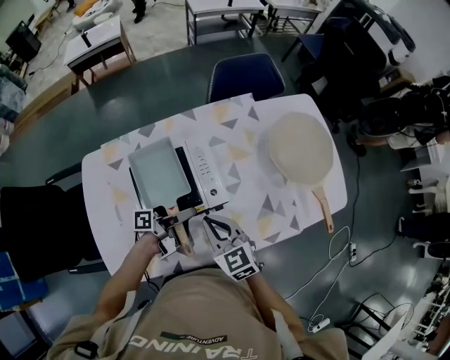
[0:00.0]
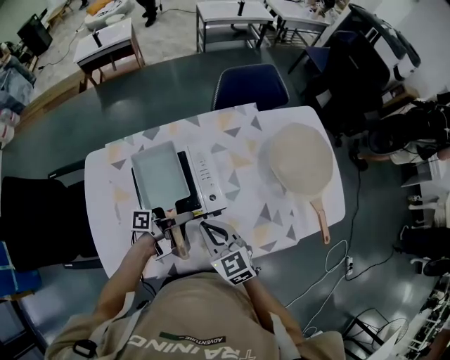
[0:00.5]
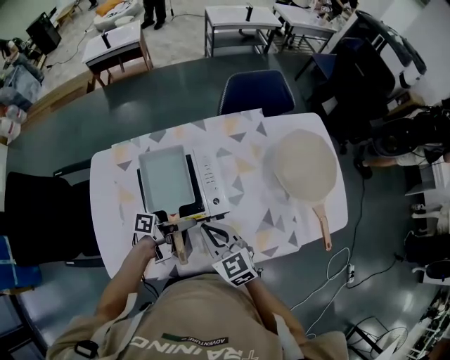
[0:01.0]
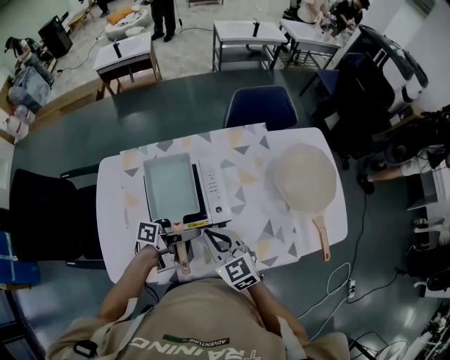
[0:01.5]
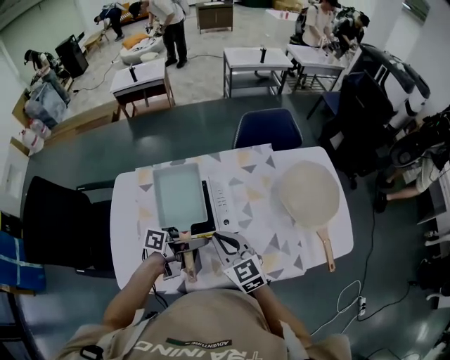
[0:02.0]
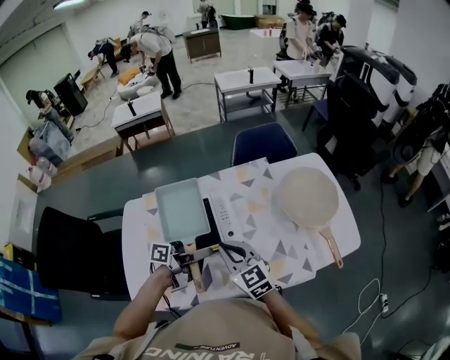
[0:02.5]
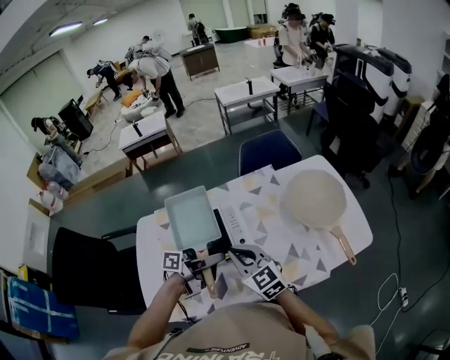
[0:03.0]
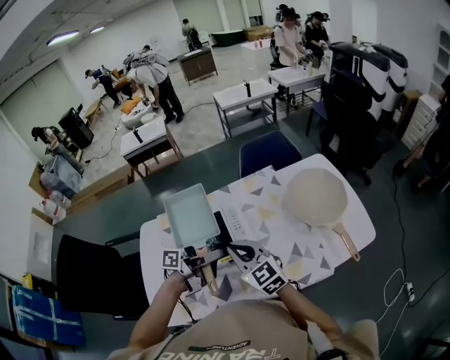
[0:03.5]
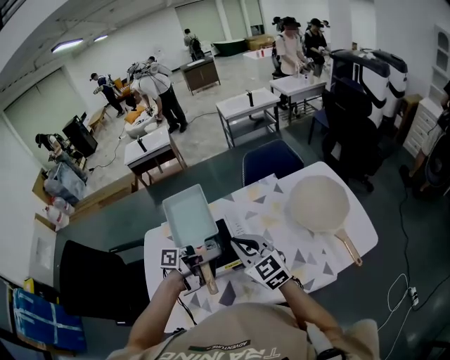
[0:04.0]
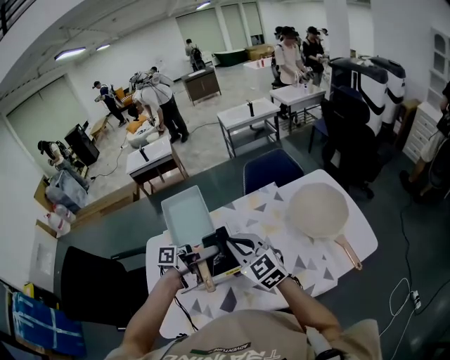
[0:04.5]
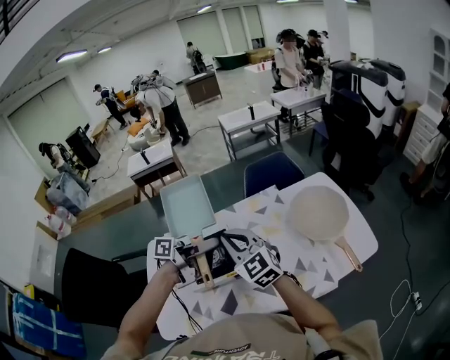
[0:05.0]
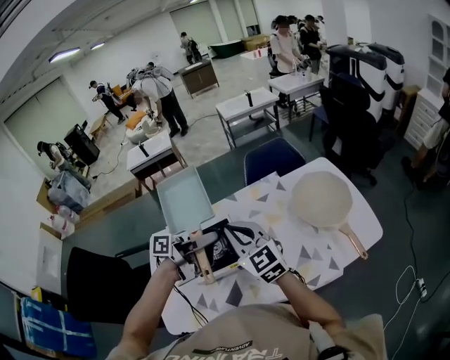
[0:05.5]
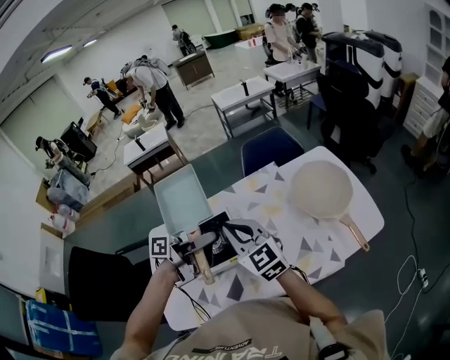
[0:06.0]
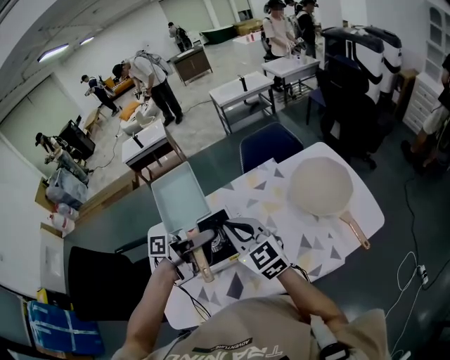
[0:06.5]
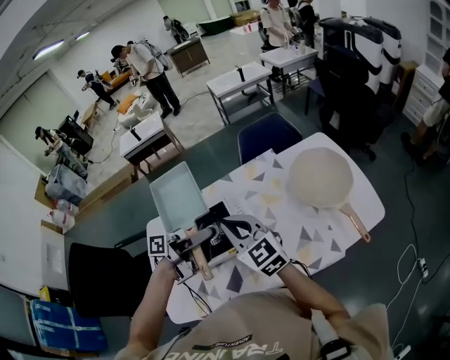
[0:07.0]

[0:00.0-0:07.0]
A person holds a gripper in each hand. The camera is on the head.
0:00.0 to 0:02.0: The two grippers go some 5 cm upward.
0:02.0 to 0:03.5: The grippers both shift upward by some 5 cm.
0:03.5 to 0:05.0: The grippers both shift upward by about 10 cm.
0:05.0 to 0:07.0: There are only small adjustments of the grippers.

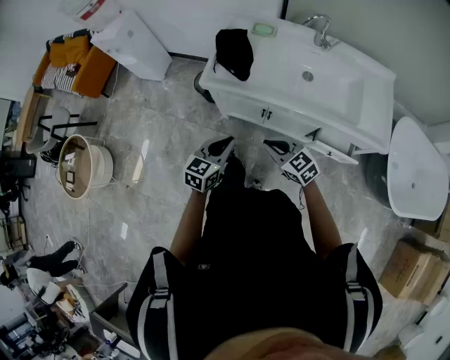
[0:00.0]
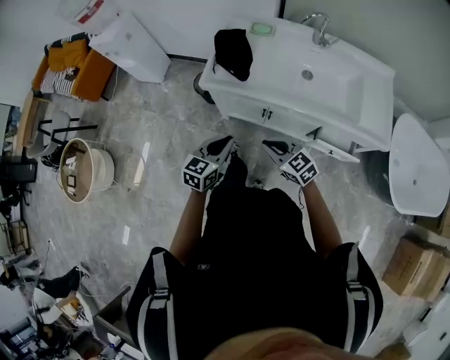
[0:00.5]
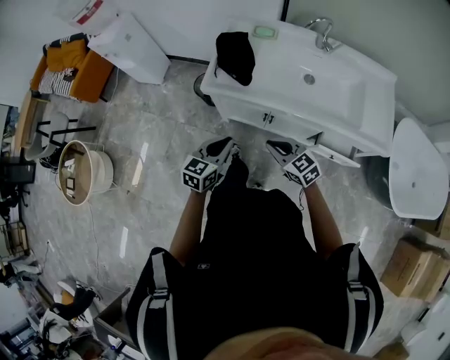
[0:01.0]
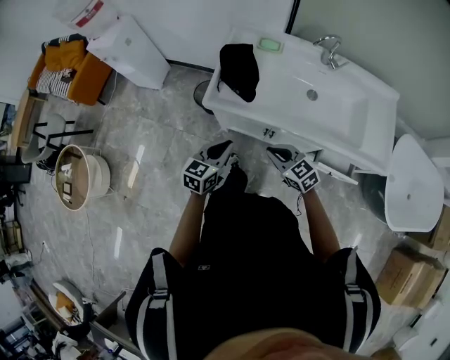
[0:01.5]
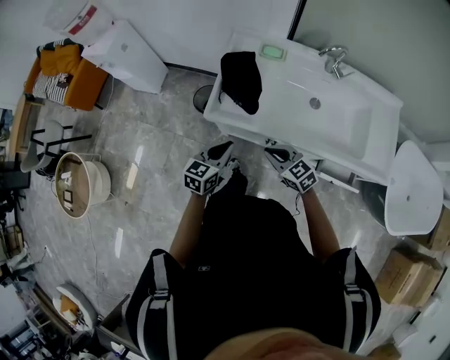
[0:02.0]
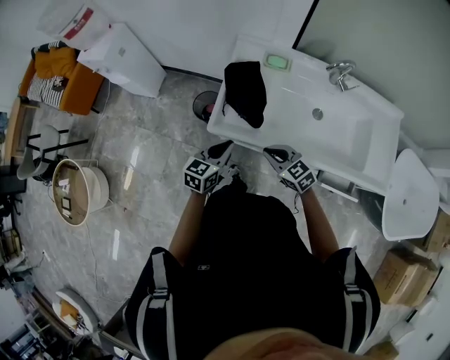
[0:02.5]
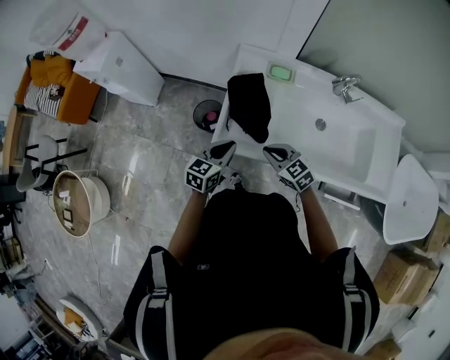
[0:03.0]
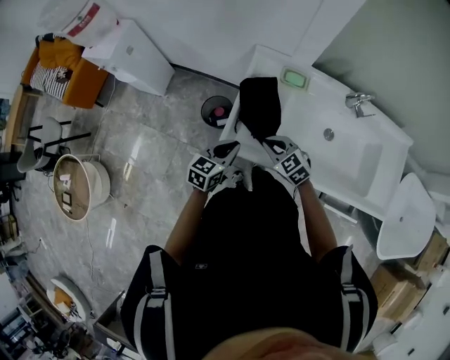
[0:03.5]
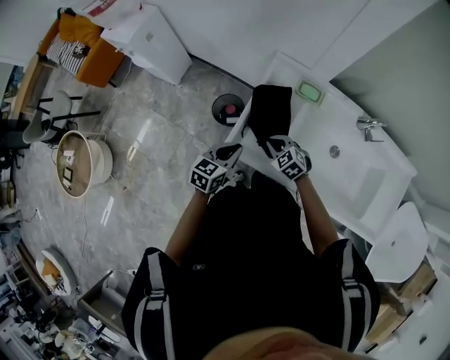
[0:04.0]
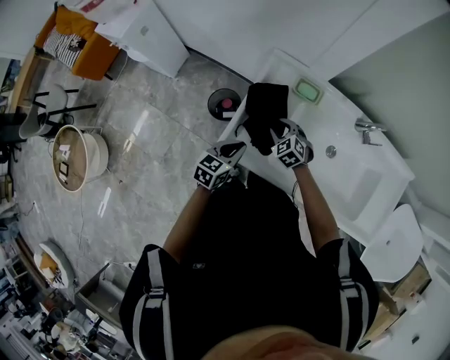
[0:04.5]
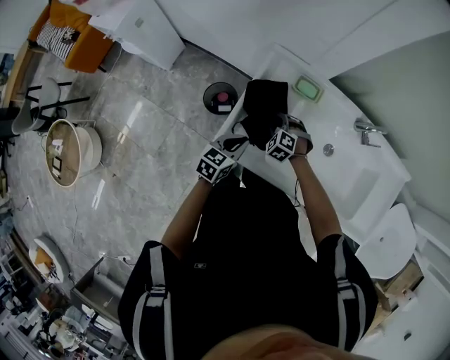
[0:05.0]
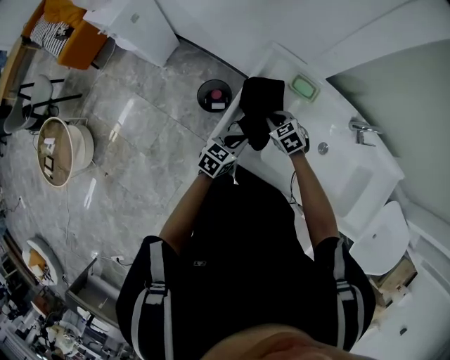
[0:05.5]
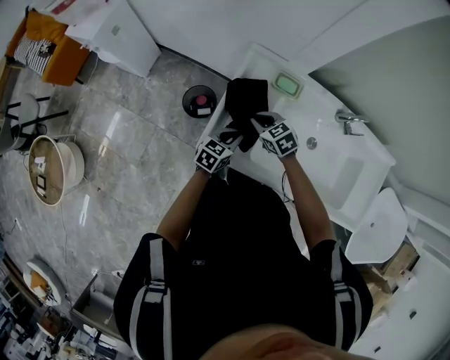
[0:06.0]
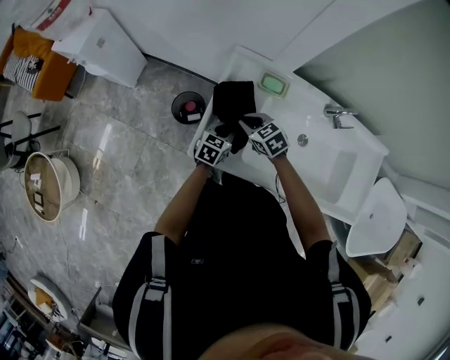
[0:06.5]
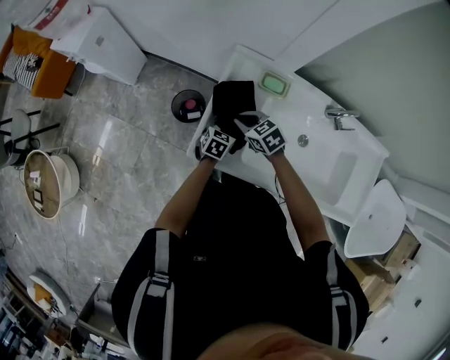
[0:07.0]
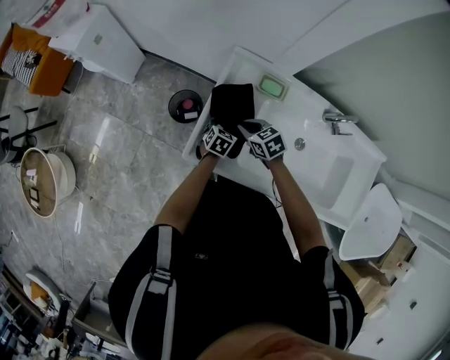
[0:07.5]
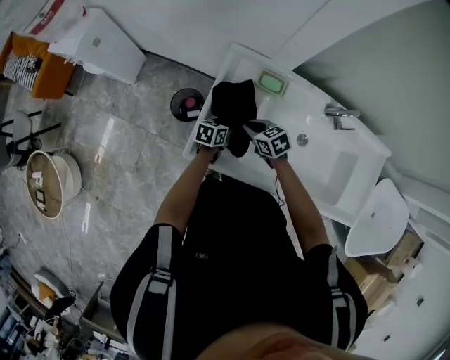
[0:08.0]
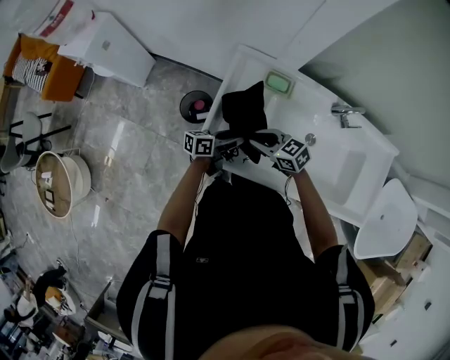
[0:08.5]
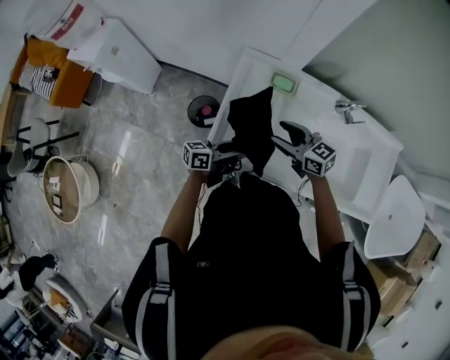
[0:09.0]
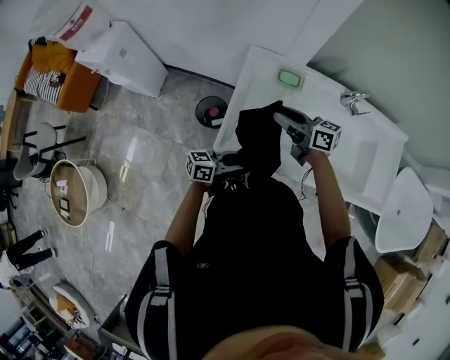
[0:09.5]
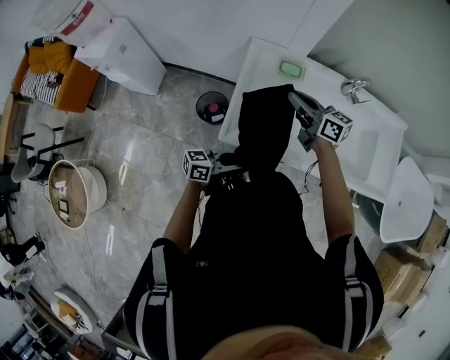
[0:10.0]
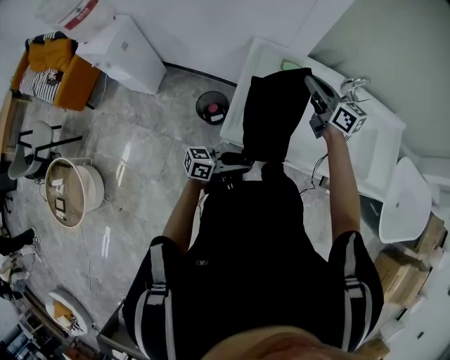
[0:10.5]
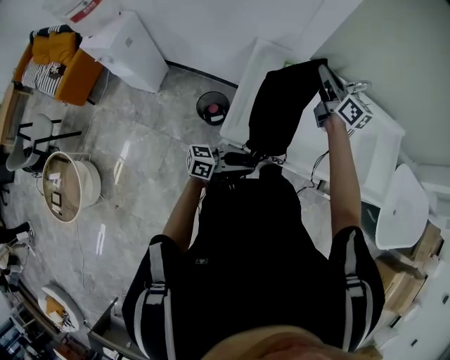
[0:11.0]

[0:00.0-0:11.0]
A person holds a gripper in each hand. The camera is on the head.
0:00.0 to 0:02.0: Both grippers move forward, approximately 15 cm.
0:02.0 to 0:03.5: The grippers both shift forward by roughly 20 cm.
0:03.5 to 0:05.5: The right gripper is displaced forward and downward by approximately 15 cm, and opens, then closes again, while the left gripper goes about 10 cm downward and forward.
0:05.5 to 0:07.5: The left gripper goes approximately 15 cm downward, forward and to the right, and opens its fingers.
0:07.5 to 0:09.0: Both grippers move upward, roughly 15 cm. The right gripper changes its angle by about 30 degrees, and opens its fingers; the left gripper tips its fingers upward by some 50 degrees.
0:09.0 to 0:11.0: The right gripper shifts roughly 15 cm upward, rotates about 40 degrees, and closes its fingers, while the left gripper shifts by about 15 cm.

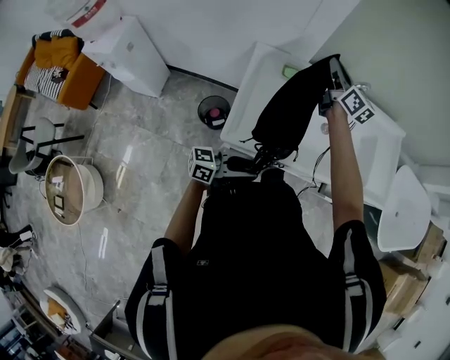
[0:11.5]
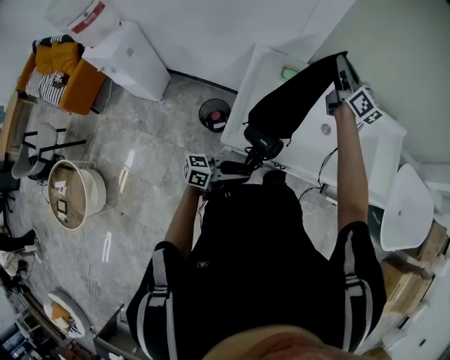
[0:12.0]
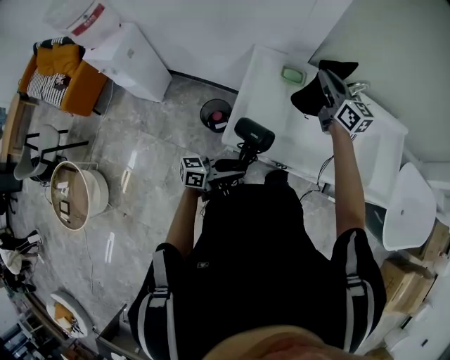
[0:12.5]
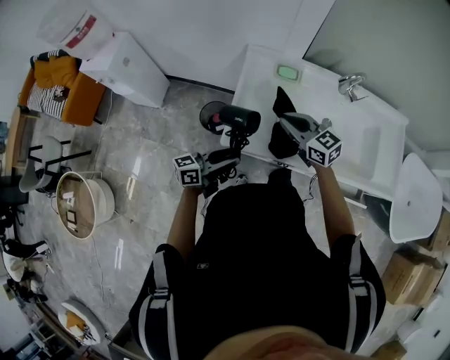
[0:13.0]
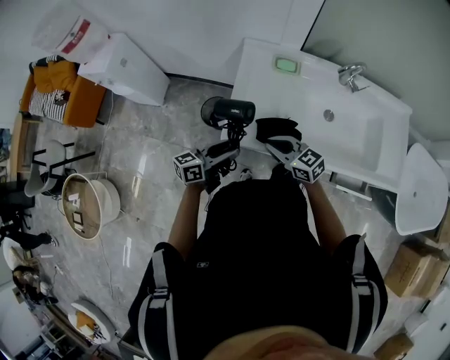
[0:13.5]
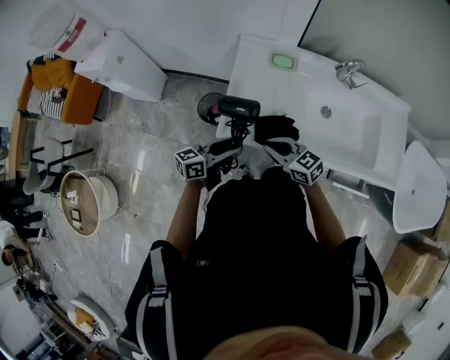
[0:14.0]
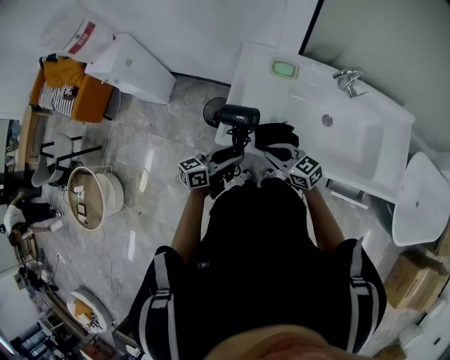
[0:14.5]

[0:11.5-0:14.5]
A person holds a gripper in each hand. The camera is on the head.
0:11.5 to 0:13.0: The left gripper ends up about 10 cm from where it was, and swivels some 20 degrees. The right gripper changes place by approximately 25 cm, and rotates about 40 degrees.
0:13.0 to 0:14.5: The left gripper moves about 5 cm; the right gripper moves backward and downward, some 10 cm.

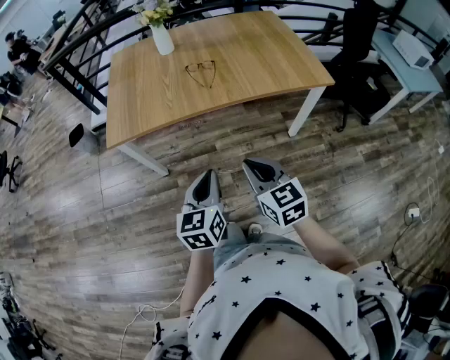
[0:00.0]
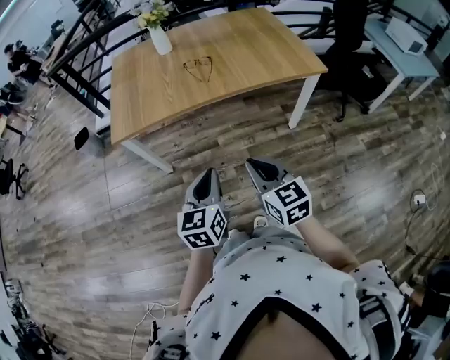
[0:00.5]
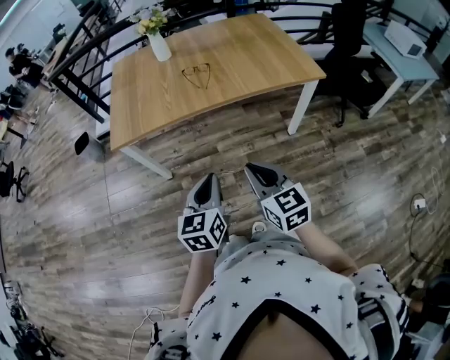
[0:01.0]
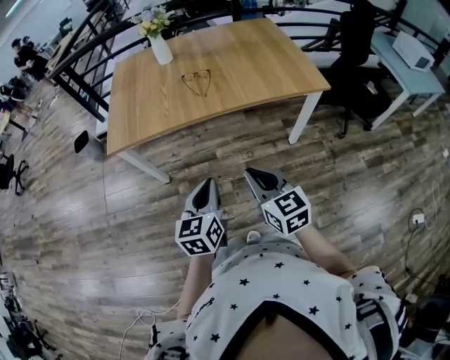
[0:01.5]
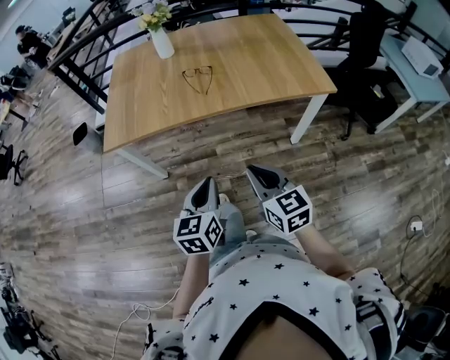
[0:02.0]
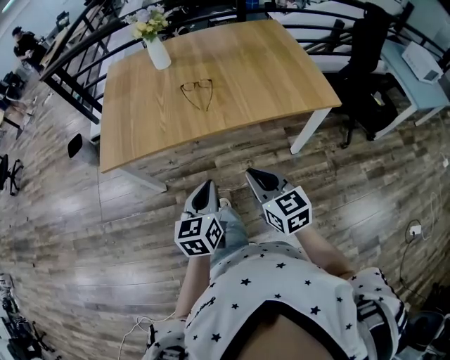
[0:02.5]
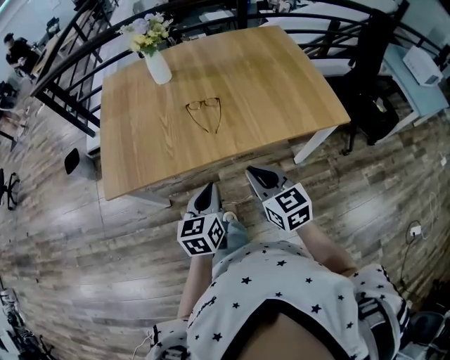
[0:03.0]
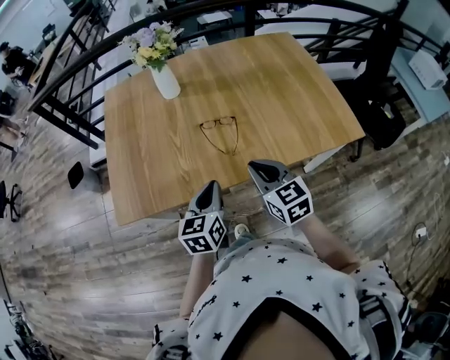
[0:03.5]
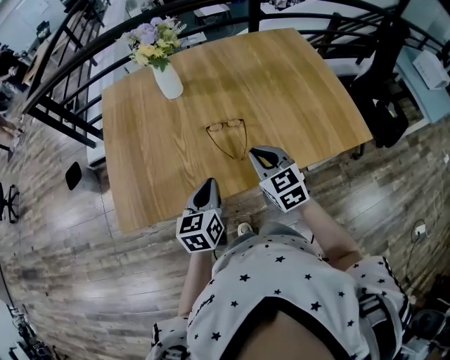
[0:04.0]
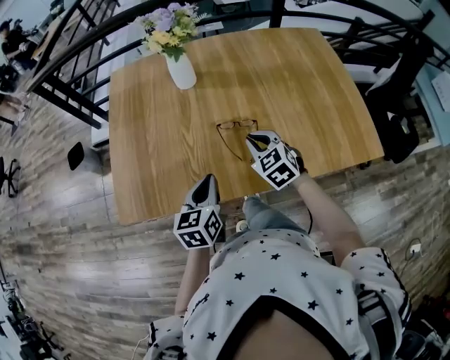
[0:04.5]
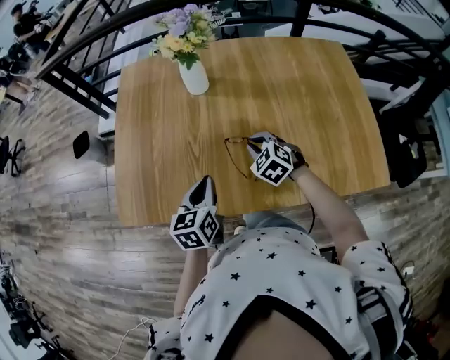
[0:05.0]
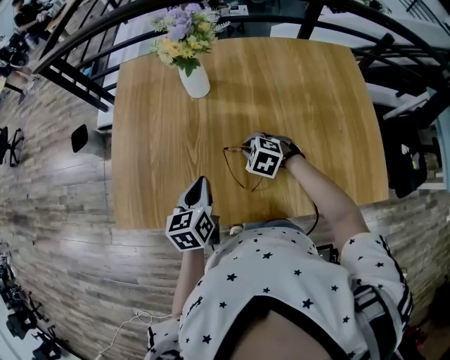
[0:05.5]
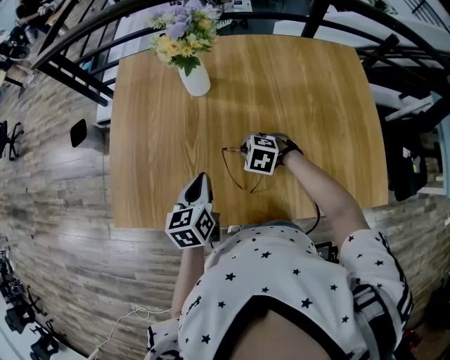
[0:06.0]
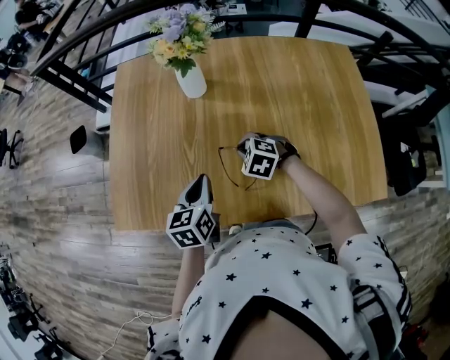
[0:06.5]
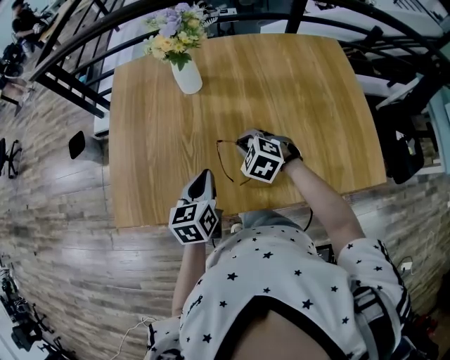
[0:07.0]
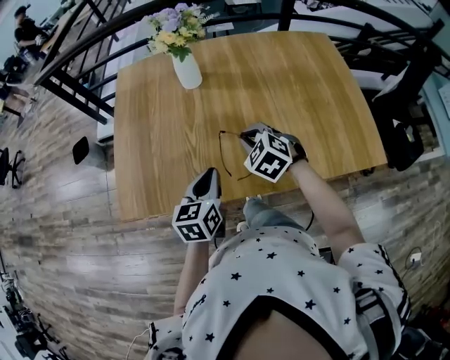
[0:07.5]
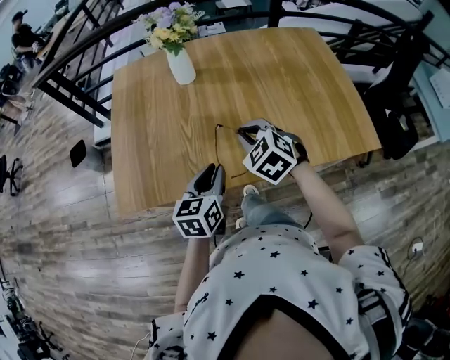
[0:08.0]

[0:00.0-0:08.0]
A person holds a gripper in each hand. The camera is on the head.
0:00.0 to 0:02.0: The left gripper changes place by roughly 5 cm, while the right gripper travels to the right by about 5 cm.
0:02.0 to 0:04.0: The grippers both shift forward by roughly 40 cm.
0:04.0 to 0:06.0: The right gripper ends up some 20 cm from where it was, and points its fingers approximately 40 degrees further downward; the left gripper changes place by approximately 15 cm.
0:06.0 to 0:08.0: The left gripper shifts by some 15 cm. The right gripper shifts roughly 15 cm upward, and turns by about 40 degrees.
